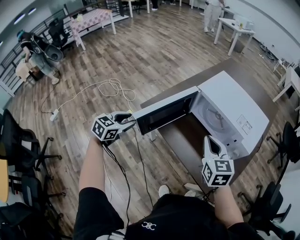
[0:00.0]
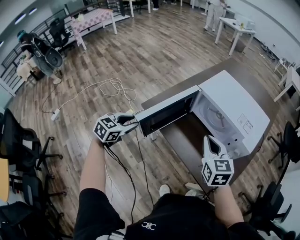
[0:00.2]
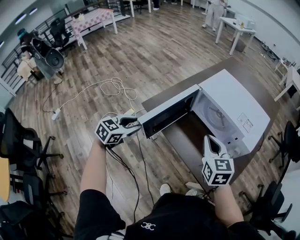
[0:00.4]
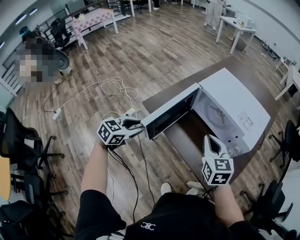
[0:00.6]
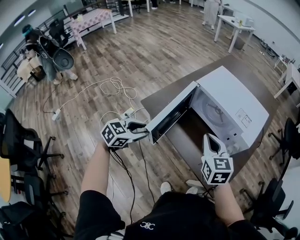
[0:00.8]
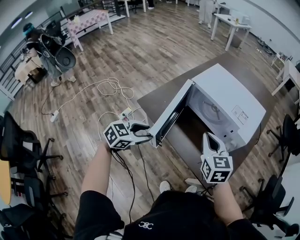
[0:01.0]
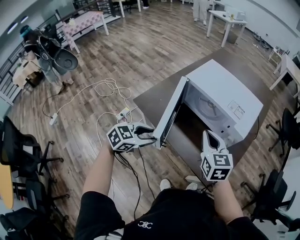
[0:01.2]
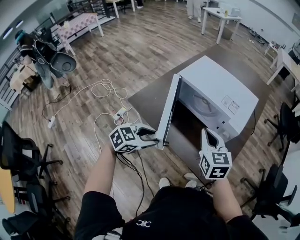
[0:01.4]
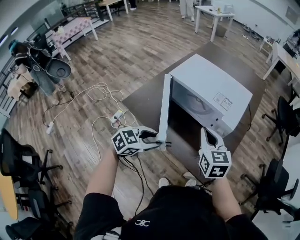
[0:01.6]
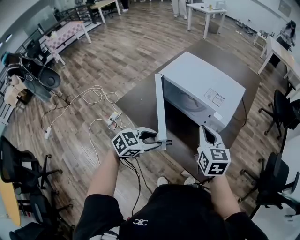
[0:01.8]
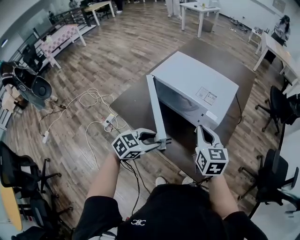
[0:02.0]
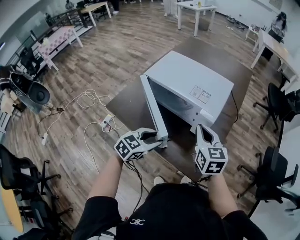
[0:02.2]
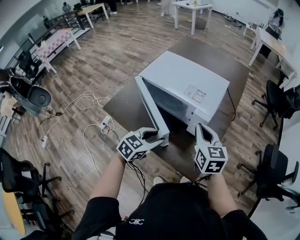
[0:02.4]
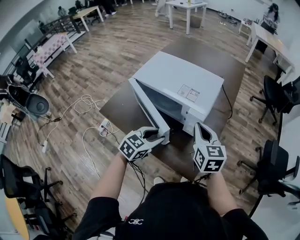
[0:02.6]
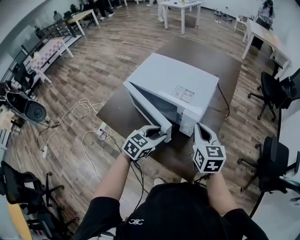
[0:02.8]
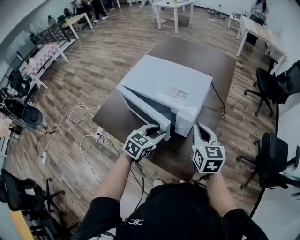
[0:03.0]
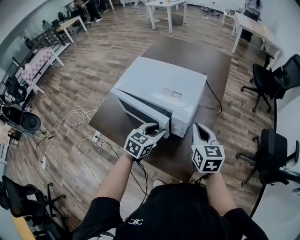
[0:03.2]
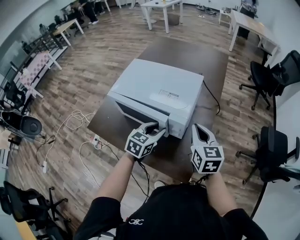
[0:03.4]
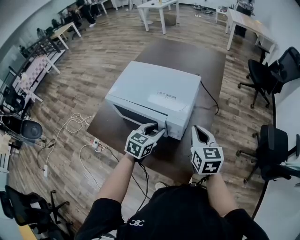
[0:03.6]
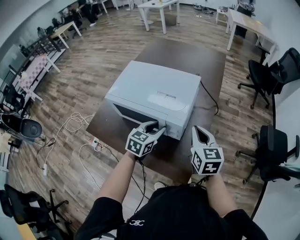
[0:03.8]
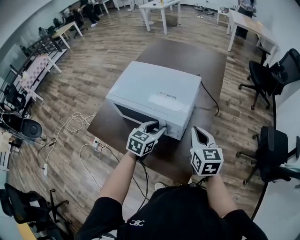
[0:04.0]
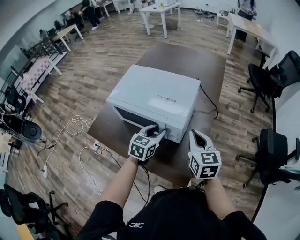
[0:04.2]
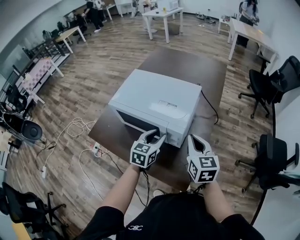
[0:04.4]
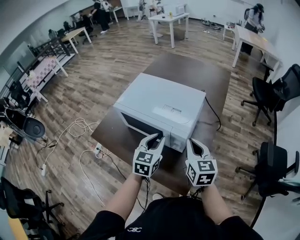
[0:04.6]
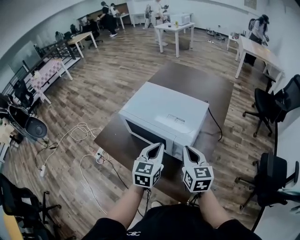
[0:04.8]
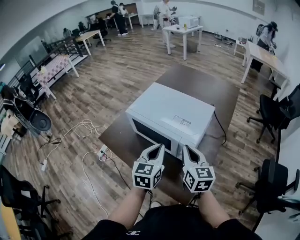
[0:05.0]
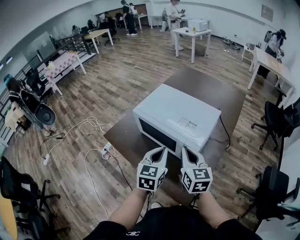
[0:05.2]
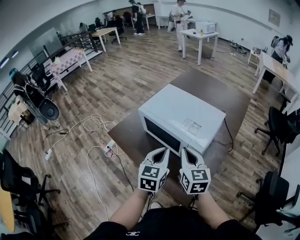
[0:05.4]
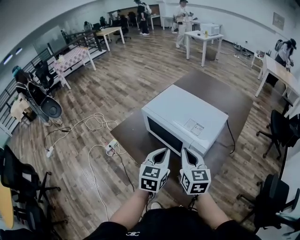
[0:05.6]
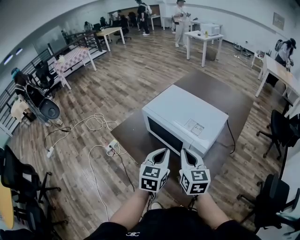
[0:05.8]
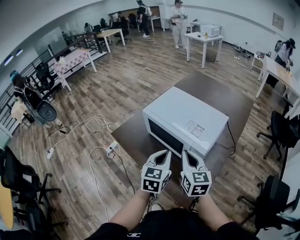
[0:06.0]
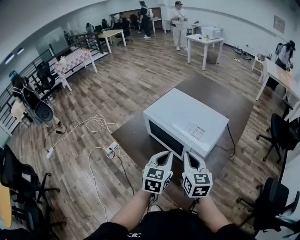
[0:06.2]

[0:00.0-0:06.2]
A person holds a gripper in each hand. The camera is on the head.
0:00.0 to 0:01.6: The right gripper shifts about 10 cm to the right; the left gripper goes approximately 30 cm to the right, and swivels about 30 degrees.
0:01.6 to 0:03.2: The right gripper shifts approximately 20 cm to the right and forward; the left gripper travels forward and to the right by approximately 25 cm.
0:03.2 to 0:04.6: The left gripper shifts approximately 5 cm upward, and changes its angle by about 20 degrees.
0:04.6 to 0:06.2: The left gripper travels to the left by about 5 cm, and closes. The right gripper heads to the left, covering about 10 cm.

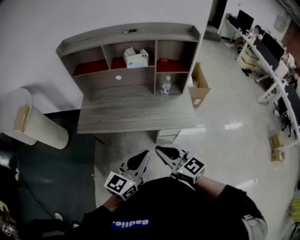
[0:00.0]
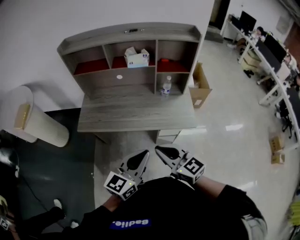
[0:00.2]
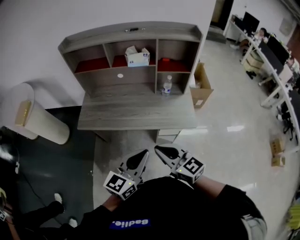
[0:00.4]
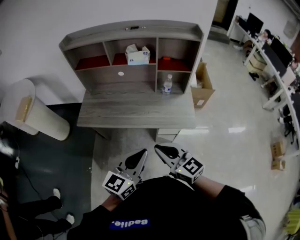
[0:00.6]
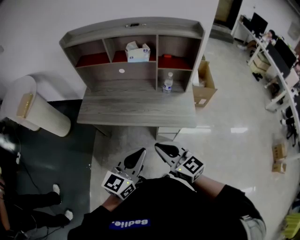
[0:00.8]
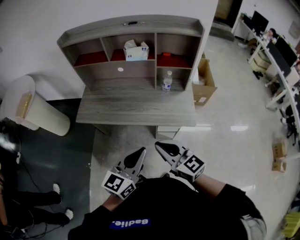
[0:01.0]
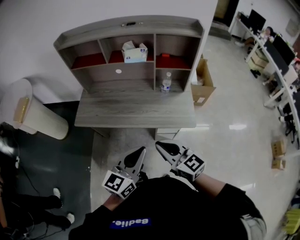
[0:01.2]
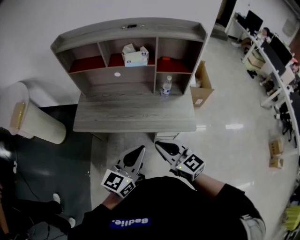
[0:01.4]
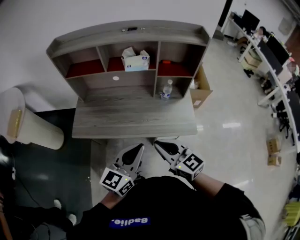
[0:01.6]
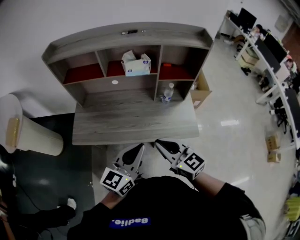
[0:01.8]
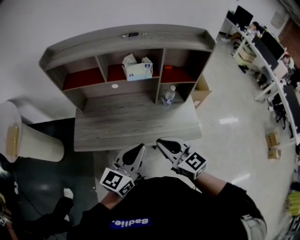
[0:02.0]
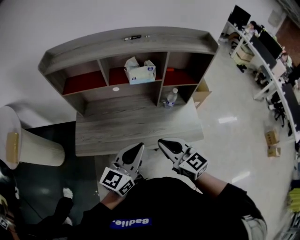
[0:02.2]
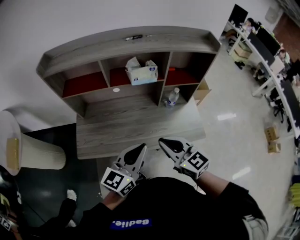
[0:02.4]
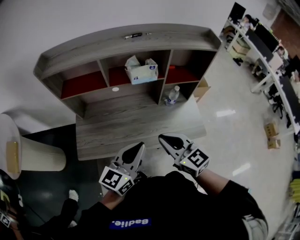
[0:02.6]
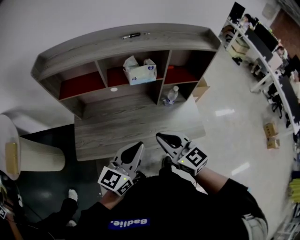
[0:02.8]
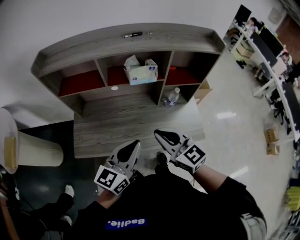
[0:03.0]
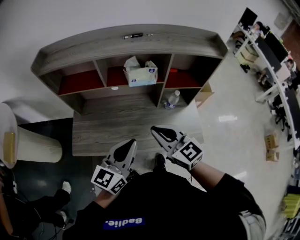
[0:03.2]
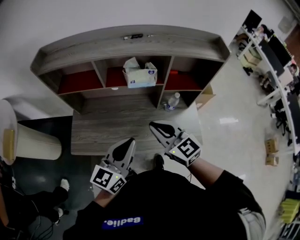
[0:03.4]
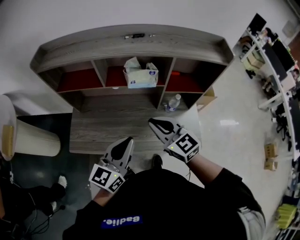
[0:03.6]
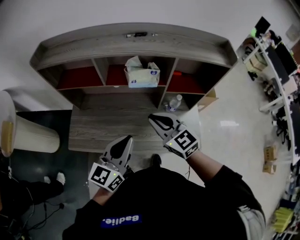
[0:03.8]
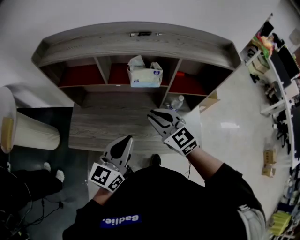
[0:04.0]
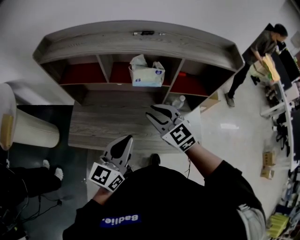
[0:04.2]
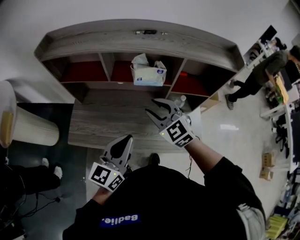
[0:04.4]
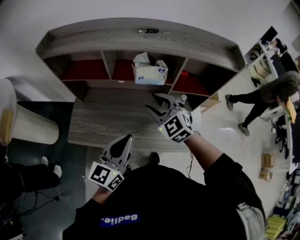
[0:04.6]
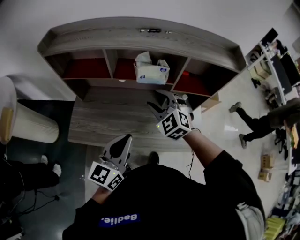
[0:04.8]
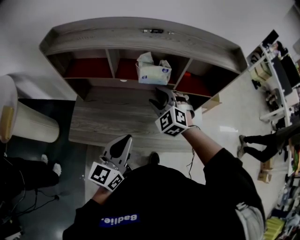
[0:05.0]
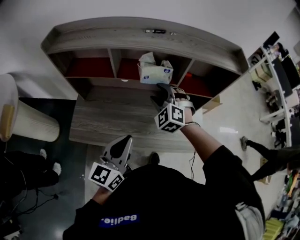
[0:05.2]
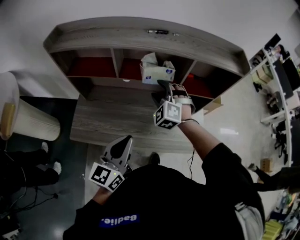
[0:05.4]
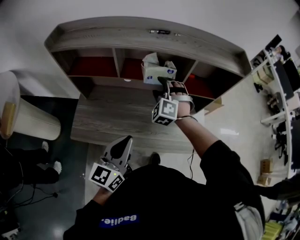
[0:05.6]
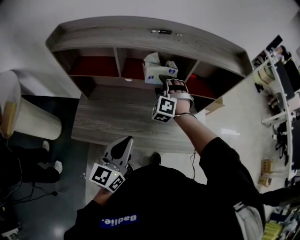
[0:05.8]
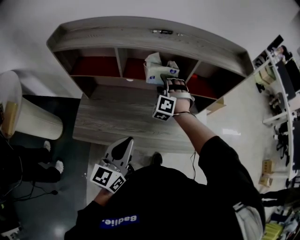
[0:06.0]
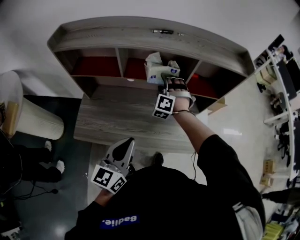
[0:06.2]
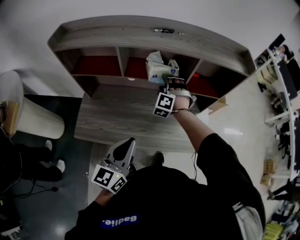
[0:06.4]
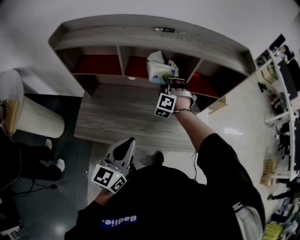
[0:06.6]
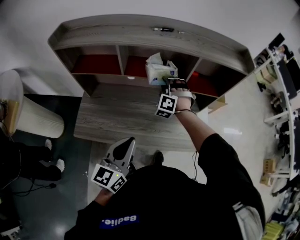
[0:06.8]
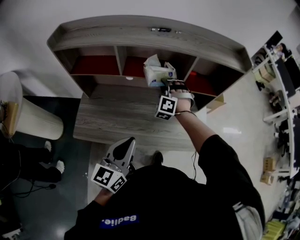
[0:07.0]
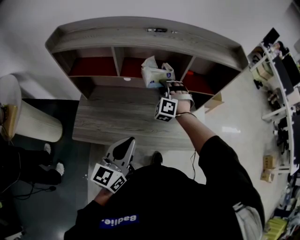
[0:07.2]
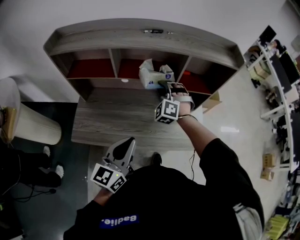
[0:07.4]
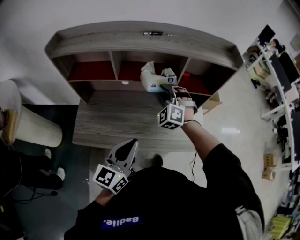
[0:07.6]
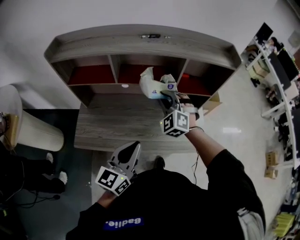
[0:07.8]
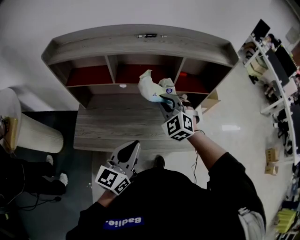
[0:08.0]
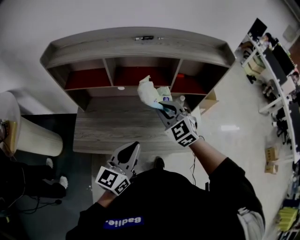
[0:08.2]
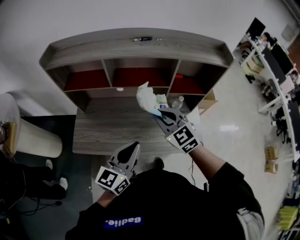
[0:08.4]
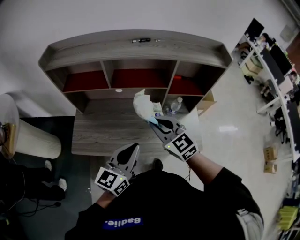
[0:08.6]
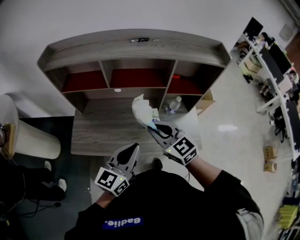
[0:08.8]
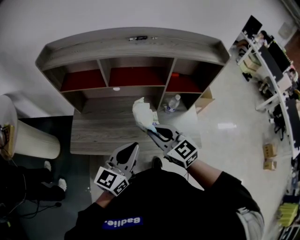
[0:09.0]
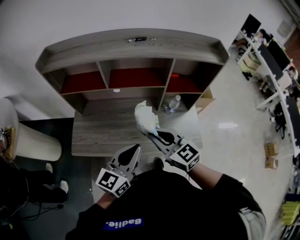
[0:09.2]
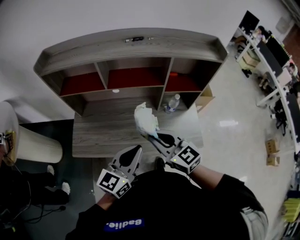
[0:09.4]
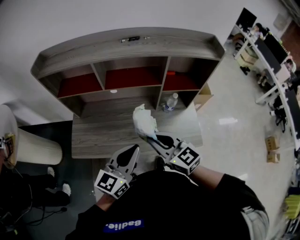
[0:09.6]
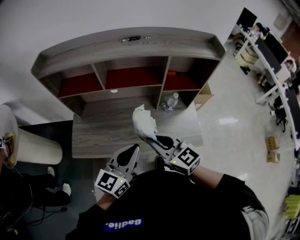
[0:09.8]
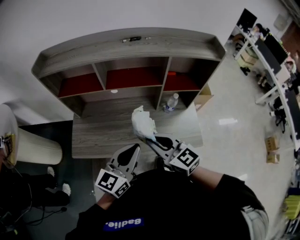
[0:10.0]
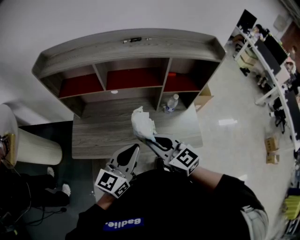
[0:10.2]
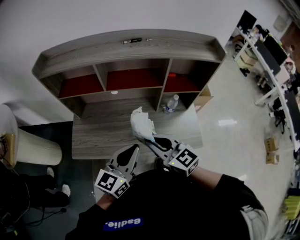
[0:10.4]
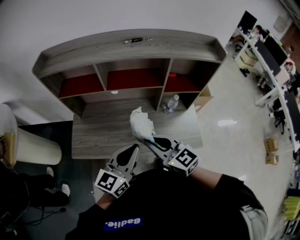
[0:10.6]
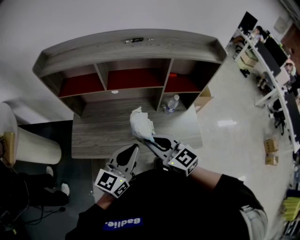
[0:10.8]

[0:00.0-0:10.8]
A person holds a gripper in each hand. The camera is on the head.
0:00.0 to 0:01.6: The two grippers go some 10 cm forward.
0:01.6 to 0:03.0: Both grippers travel together forward and to the left, roughly 15 cm.
0:03.0 to 0:04.6: The right gripper moves forward, approximately 15 cm, rotates approximately 40 degrees, and opens up.
0:04.6 to 0:06.2: The right gripper goes approximately 15 cm forward and downward, and turns by about 50 degrees.
0:06.2 to 0:07.8: The right gripper goes roughly 10 cm backward and upward, rotates approximately 20 degrees, and closes up.
0:07.8 to 0:09.2: The right gripper travels backward by about 15 cm, and rolls clockwise, seen from behind, by approximately 50 degrees.
0:09.2 to 0:10.8: The grippers stay close to where they were, moving slightly.

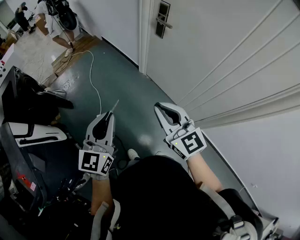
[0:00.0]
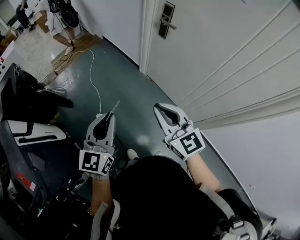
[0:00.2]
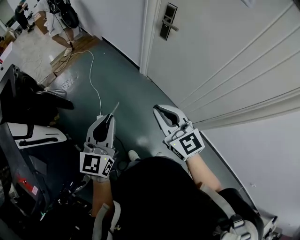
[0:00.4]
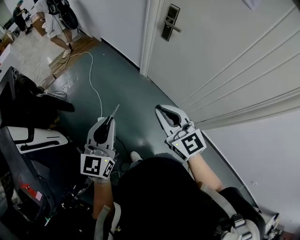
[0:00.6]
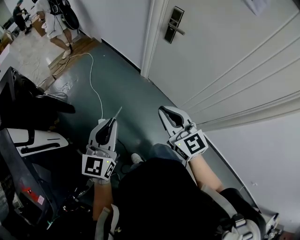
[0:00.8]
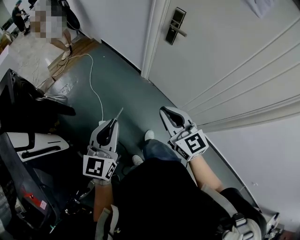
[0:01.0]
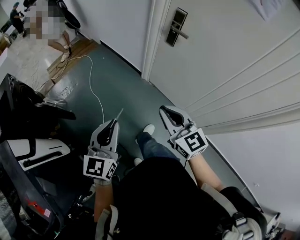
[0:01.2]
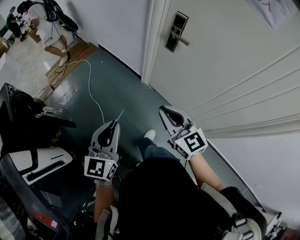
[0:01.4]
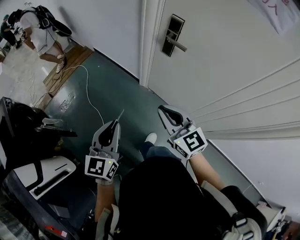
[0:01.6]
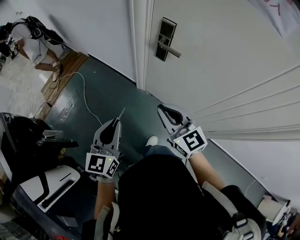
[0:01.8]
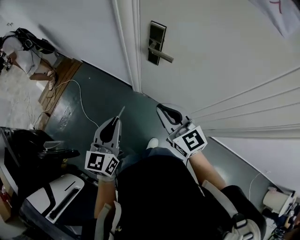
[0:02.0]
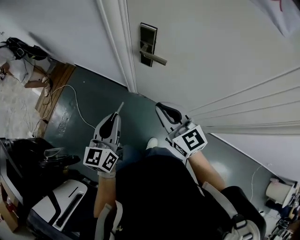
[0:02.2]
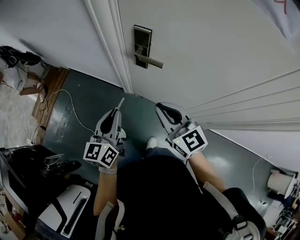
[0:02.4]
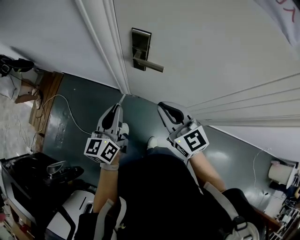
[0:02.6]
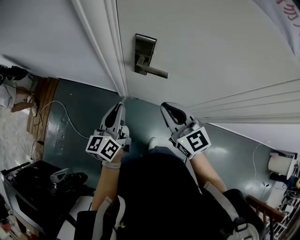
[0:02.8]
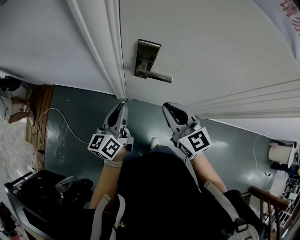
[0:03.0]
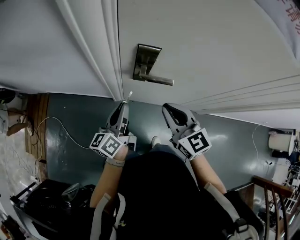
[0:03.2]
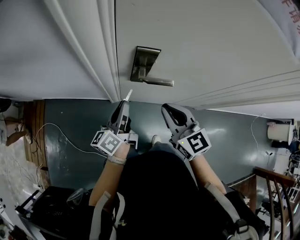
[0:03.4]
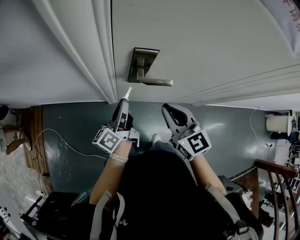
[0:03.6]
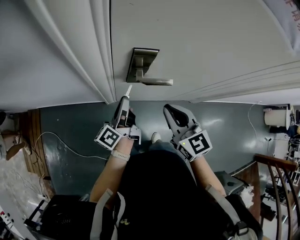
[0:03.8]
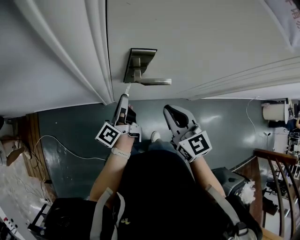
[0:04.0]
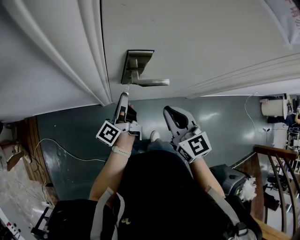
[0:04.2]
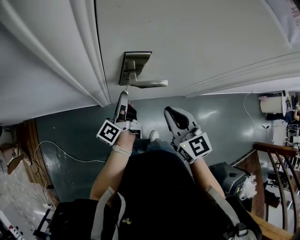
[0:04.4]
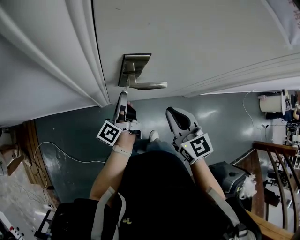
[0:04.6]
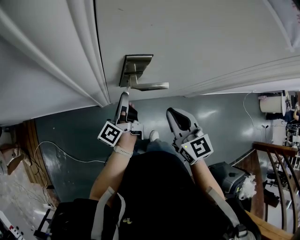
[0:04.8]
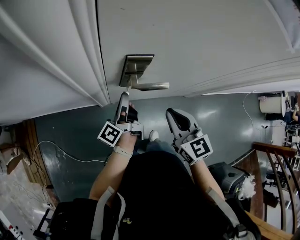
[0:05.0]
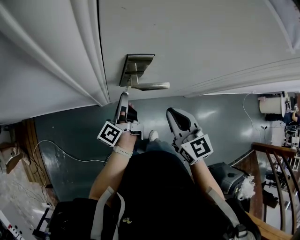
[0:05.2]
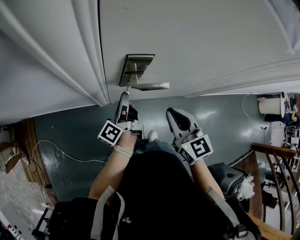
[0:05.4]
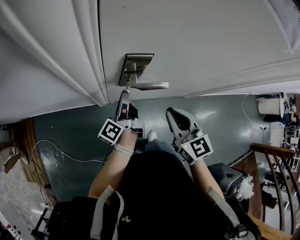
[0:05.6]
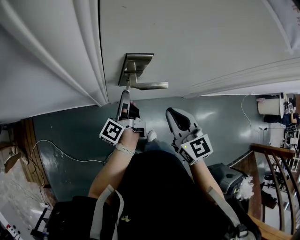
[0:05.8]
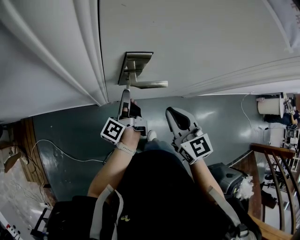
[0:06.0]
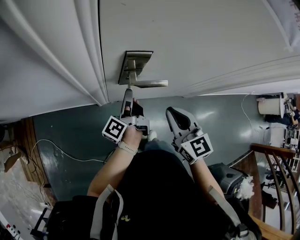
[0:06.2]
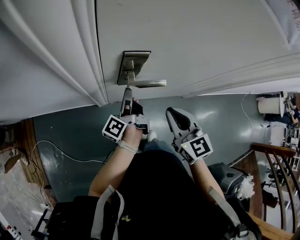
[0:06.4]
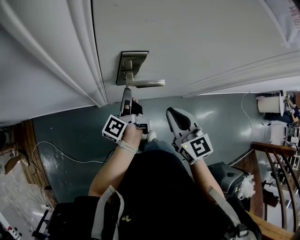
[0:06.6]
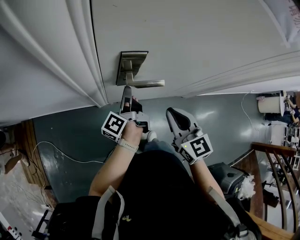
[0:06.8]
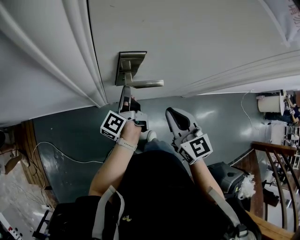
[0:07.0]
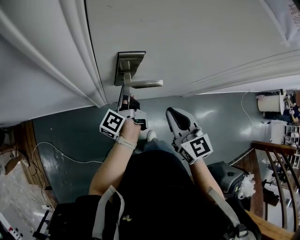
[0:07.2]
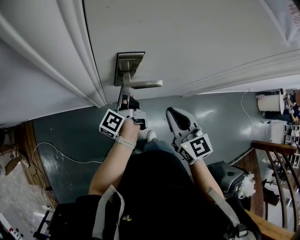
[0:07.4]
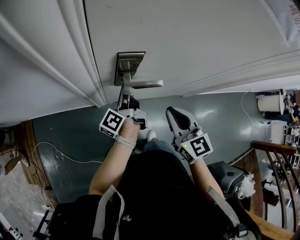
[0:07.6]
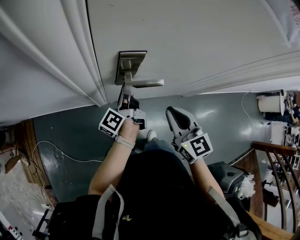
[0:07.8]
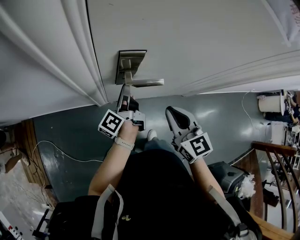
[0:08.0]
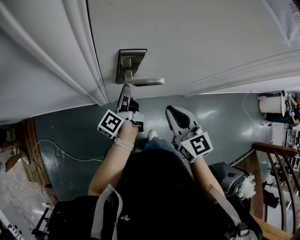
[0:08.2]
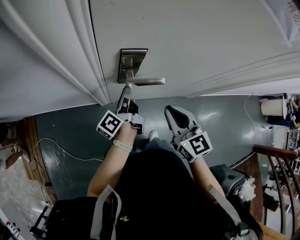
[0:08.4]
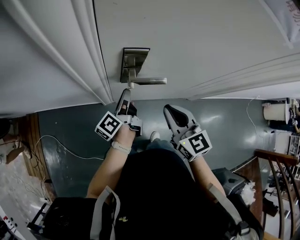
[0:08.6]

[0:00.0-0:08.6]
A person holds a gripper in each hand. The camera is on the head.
0:00.0 to 0:01.4: The left gripper travels forward and to the left by about 20 cm; the right gripper moves forward, approximately 20 cm.
0:01.4 to 0:02.8: The left gripper shifts by approximately 40 cm, and rotates some 40 degrees. Meanwhile the right gripper changes place by about 30 cm, and turns by about 30 degrees.
0:02.8 to 0:04.4: The right gripper moves approximately 5 cm, and turns by approximately 30 degrees. Meanwhile the left gripper shifts roughly 20 cm forward and downward, and rotates around the line of its fingers by about 50 degrees, counterclockwise from behind.
0:04.4 to 0:08.6: The grippers stay close to where they were, moving slightly.
